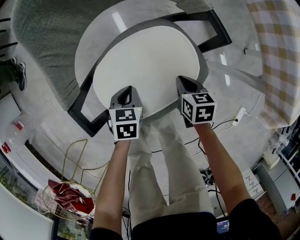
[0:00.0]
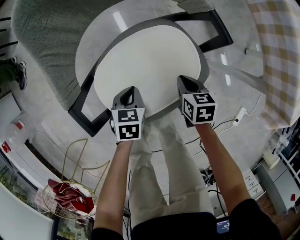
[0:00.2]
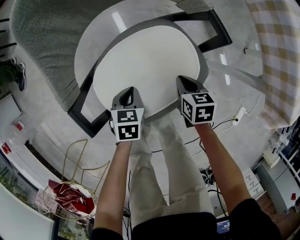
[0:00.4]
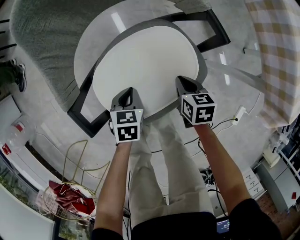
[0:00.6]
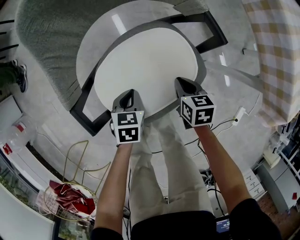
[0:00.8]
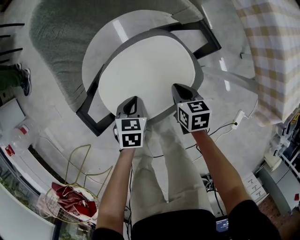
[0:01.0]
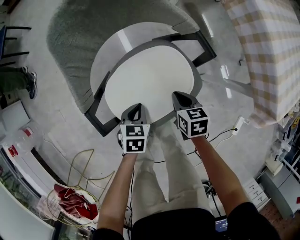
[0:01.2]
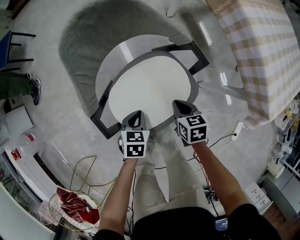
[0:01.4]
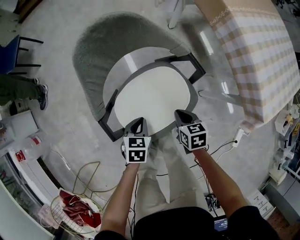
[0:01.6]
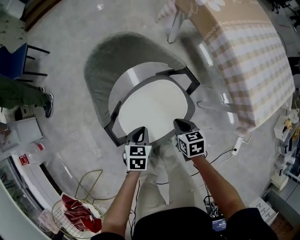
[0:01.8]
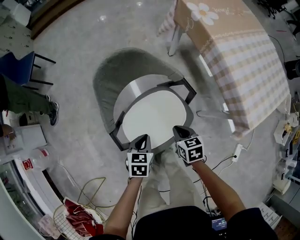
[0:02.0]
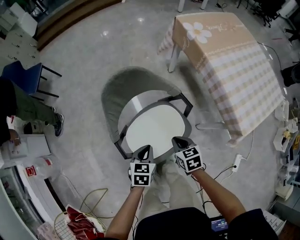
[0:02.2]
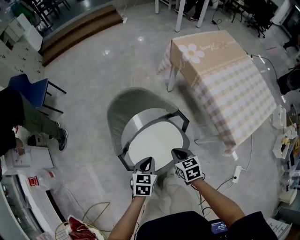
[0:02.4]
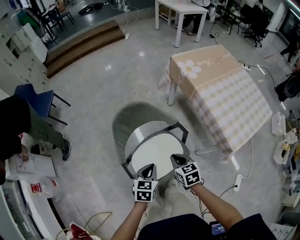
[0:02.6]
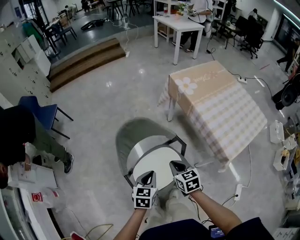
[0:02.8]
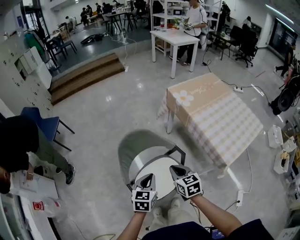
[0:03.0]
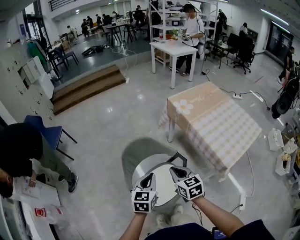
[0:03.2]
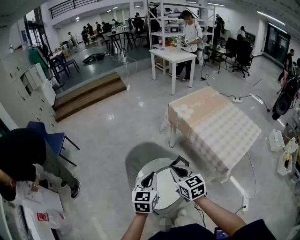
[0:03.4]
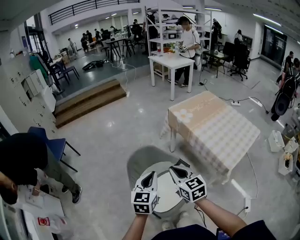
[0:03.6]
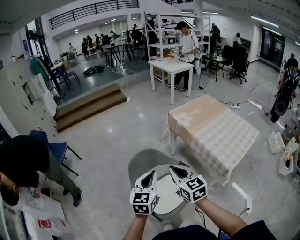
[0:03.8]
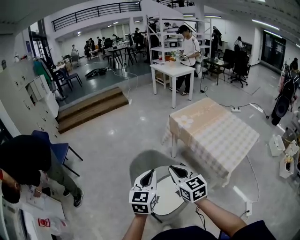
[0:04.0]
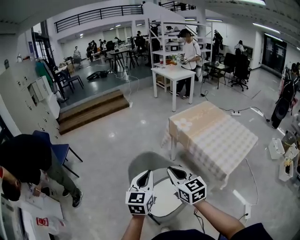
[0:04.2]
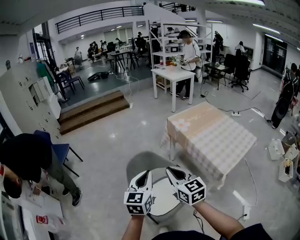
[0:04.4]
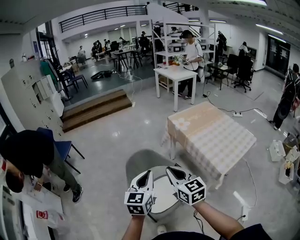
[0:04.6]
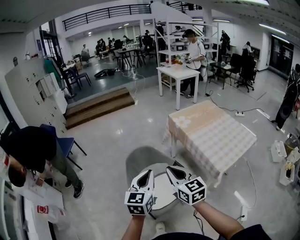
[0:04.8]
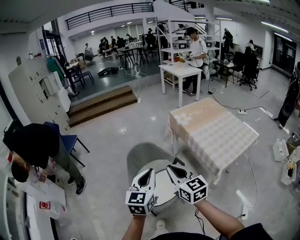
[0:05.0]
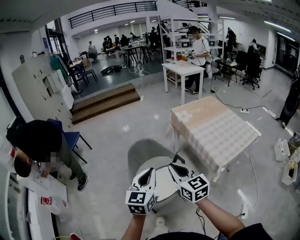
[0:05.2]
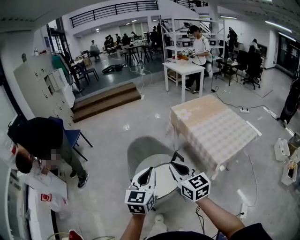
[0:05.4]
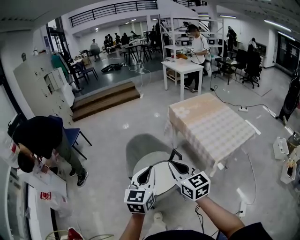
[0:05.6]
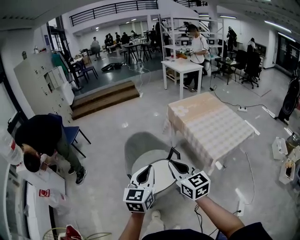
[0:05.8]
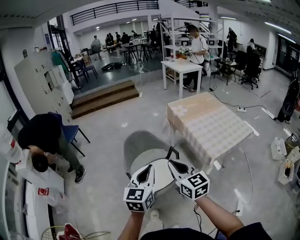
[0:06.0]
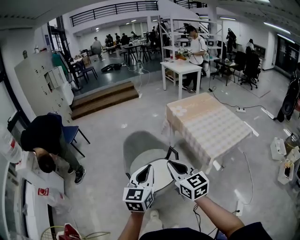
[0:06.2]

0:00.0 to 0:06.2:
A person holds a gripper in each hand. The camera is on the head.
0:00.0 to 0:01.6: Both grippers travel together upward, approximately 10 cm.
0:01.6 to 0:03.2: The two grippers go roughly 40 cm upward. The right gripper turns by about 30 degrees. The left gripper tilts its fingers approximately 30 degrees upward.
0:03.2 to 0:04.6: Both grippers move upward and backward, approximately 15 cm.
0:04.6 to 0:06.2: The two grippers go some 15 cm backward.

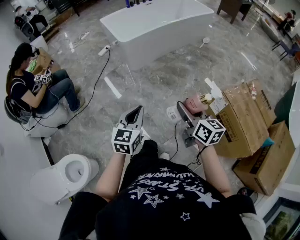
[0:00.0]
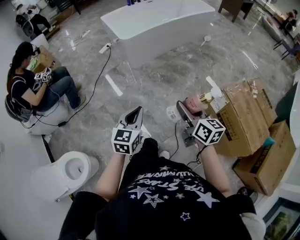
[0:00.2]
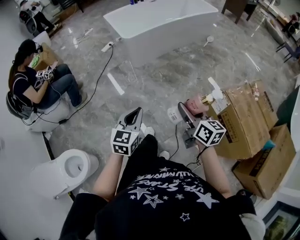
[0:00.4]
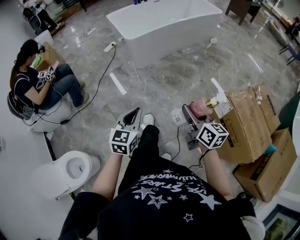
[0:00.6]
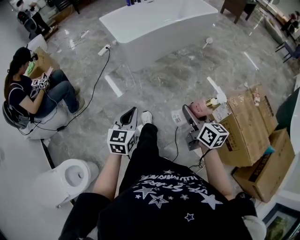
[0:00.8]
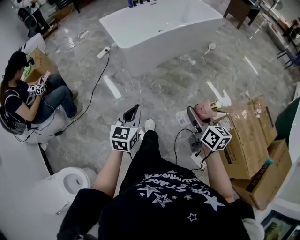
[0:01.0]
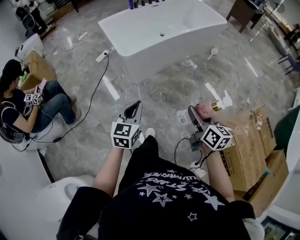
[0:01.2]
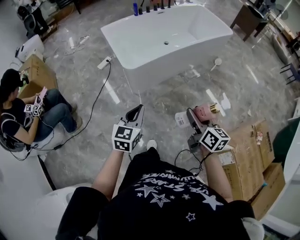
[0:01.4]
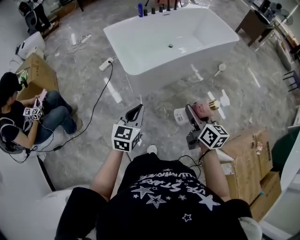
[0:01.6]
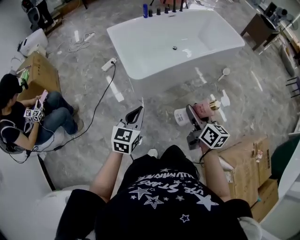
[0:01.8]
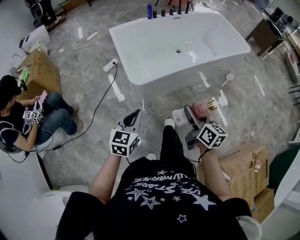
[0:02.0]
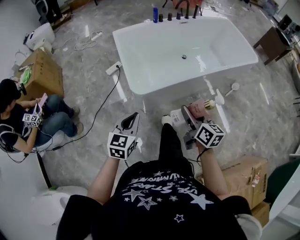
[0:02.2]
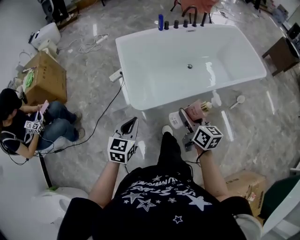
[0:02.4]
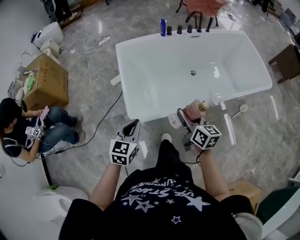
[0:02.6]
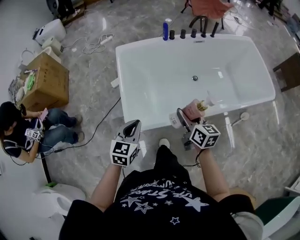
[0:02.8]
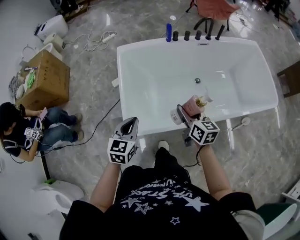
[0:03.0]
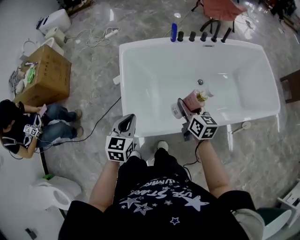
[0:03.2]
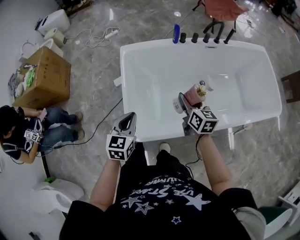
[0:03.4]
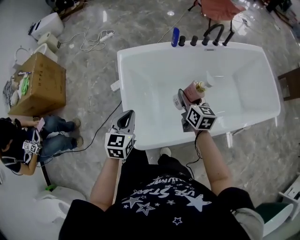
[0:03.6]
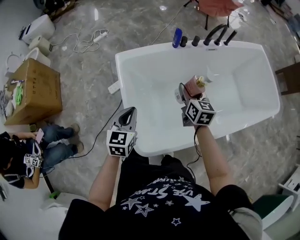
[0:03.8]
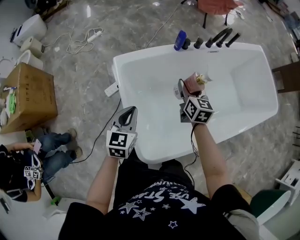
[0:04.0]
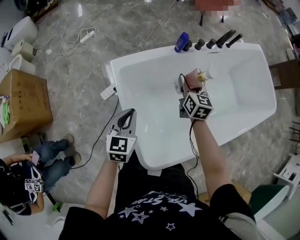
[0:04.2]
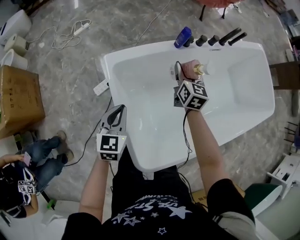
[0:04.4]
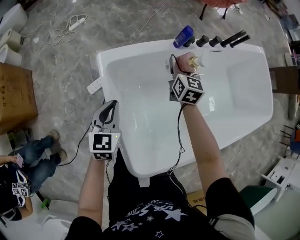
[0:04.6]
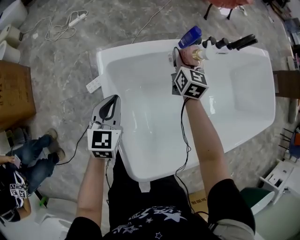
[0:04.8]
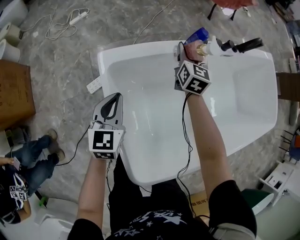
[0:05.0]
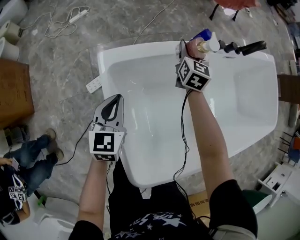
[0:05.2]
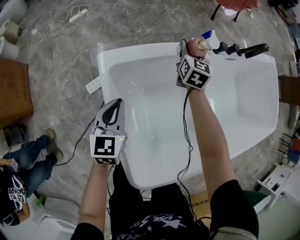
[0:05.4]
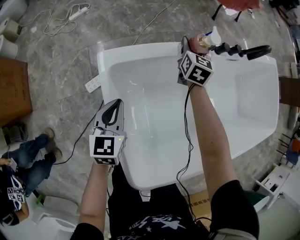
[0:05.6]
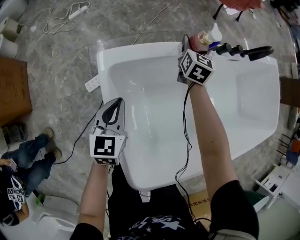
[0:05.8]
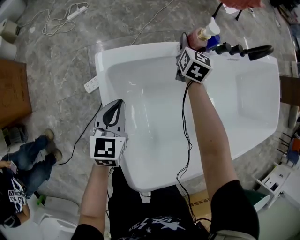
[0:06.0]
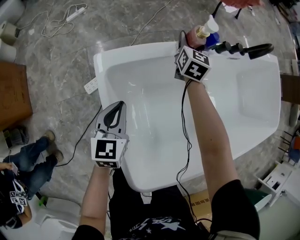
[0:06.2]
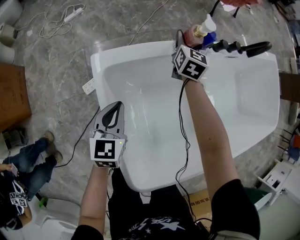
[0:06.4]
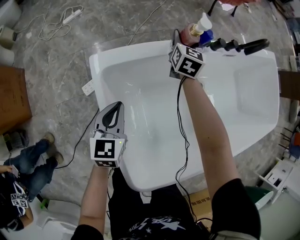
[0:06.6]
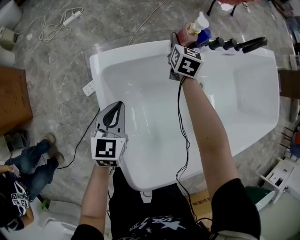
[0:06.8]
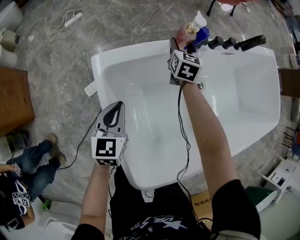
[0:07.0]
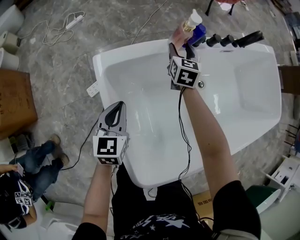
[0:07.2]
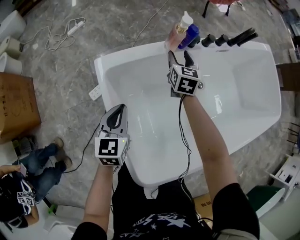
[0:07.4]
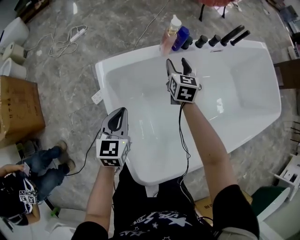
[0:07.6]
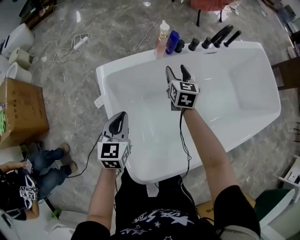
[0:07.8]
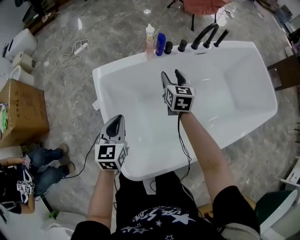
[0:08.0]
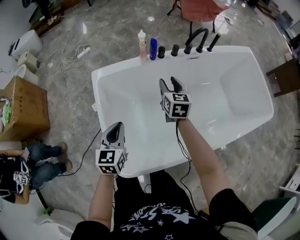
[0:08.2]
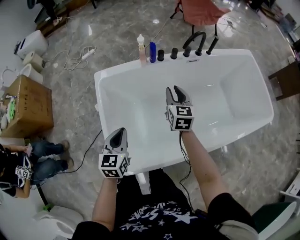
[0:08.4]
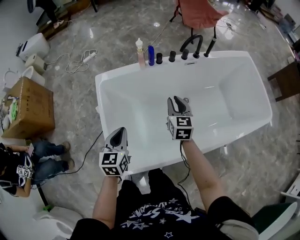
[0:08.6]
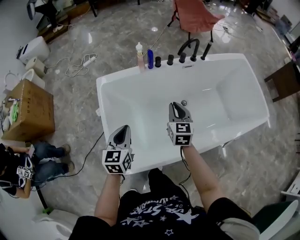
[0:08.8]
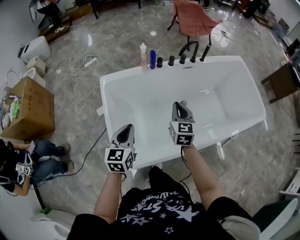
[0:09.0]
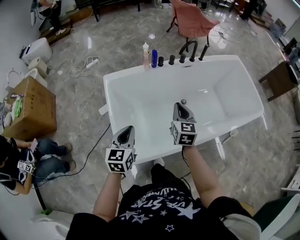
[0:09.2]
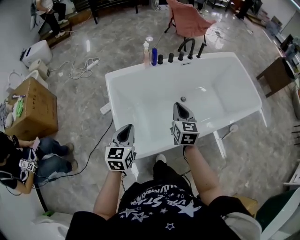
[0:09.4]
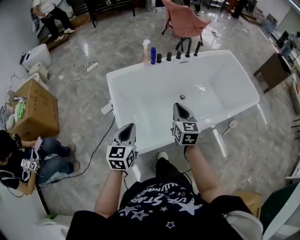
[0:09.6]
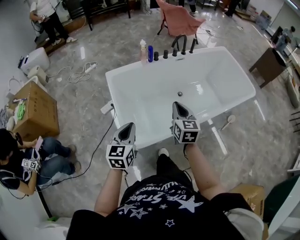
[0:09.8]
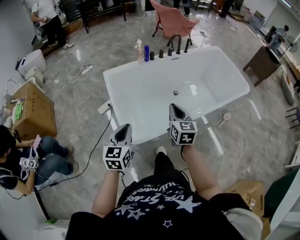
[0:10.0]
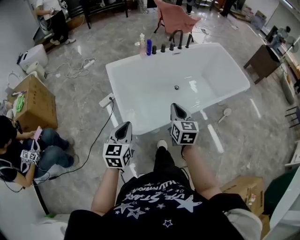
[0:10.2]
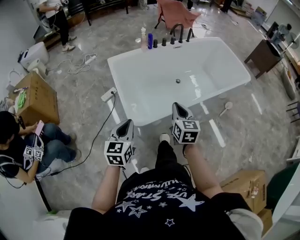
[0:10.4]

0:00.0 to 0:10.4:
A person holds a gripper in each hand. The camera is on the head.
0:00.0 to 0:01.4: Both grippers are carried forward, about 40 cm.
0:01.4 to 0:03.0: The two grippers travel together, approximately 60 cm. The left gripper changes its angle by about 30 degrees, while the right gripper turns by roughly 30 degrees.
0:03.0 to 0:04.4: The left gripper goes about 40 cm forward and to the left; the right gripper goes about 40 cm forward, and swivels some 30 degrees.
0:04.4 to 0:06.0: The left gripper moves forward and downward, roughly 15 cm. Meanwhile the right gripper moves forward and downward, some 25 cm.
0:06.0 to 0:07.4: The left gripper changes place by roughly 5 cm. The right gripper shifts roughly 10 cm backward.
0:07.4 to 0:09.0: Both grippers move backward, upward and to the right, approximately 40 cm. The right gripper closes its fingers.
0:09.0 to 0:10.4: The grippers both shift backward by roughly 35 cm.

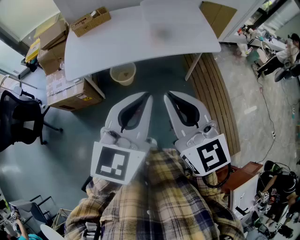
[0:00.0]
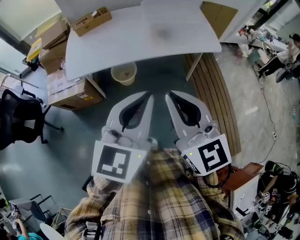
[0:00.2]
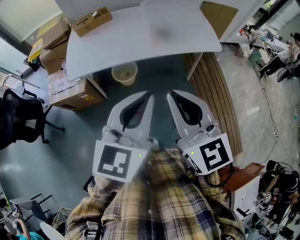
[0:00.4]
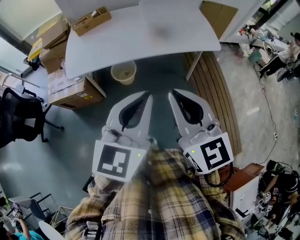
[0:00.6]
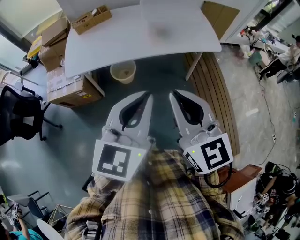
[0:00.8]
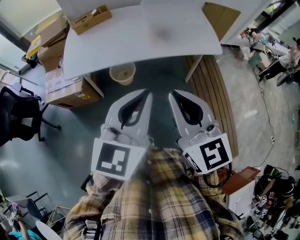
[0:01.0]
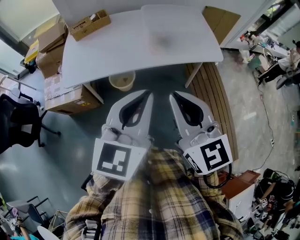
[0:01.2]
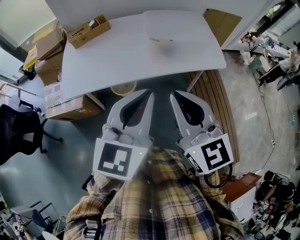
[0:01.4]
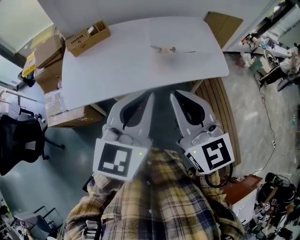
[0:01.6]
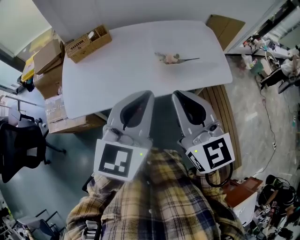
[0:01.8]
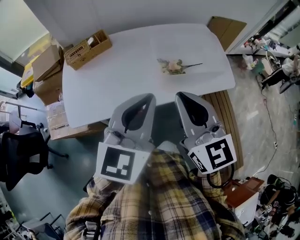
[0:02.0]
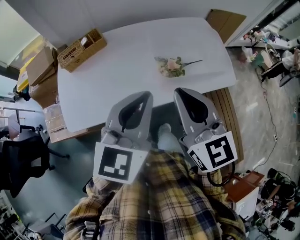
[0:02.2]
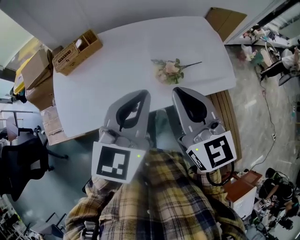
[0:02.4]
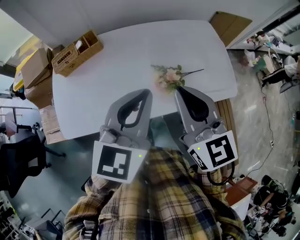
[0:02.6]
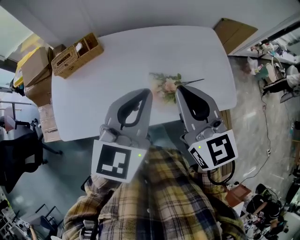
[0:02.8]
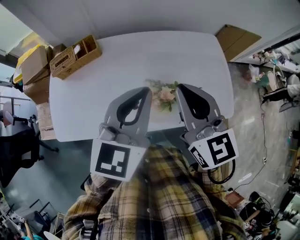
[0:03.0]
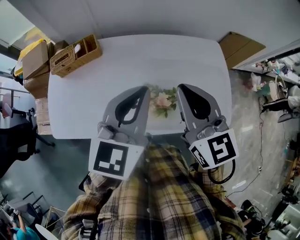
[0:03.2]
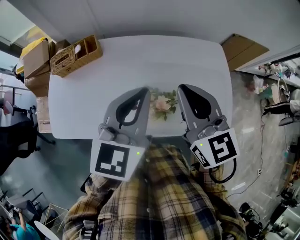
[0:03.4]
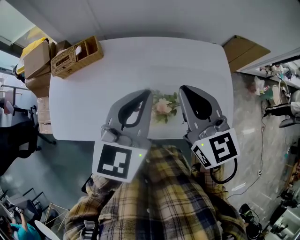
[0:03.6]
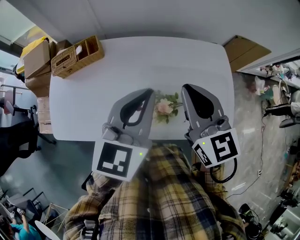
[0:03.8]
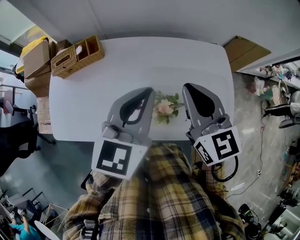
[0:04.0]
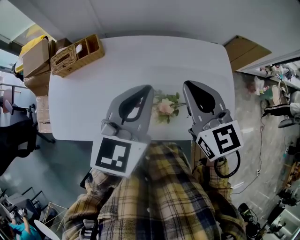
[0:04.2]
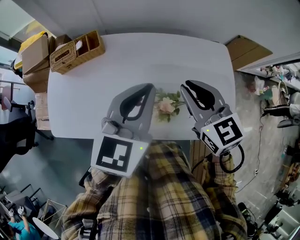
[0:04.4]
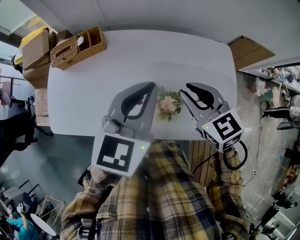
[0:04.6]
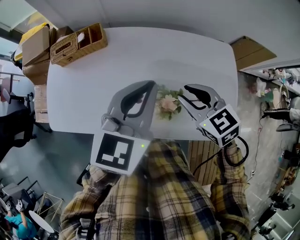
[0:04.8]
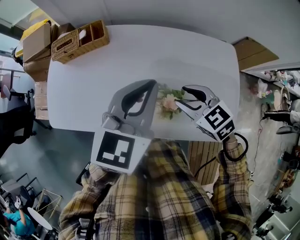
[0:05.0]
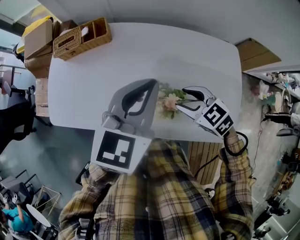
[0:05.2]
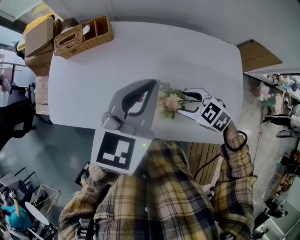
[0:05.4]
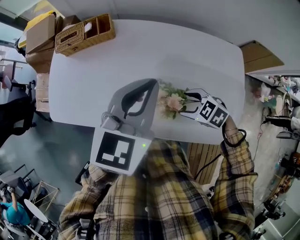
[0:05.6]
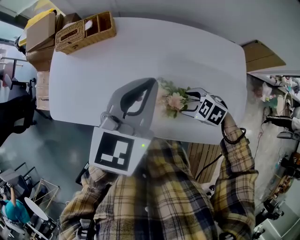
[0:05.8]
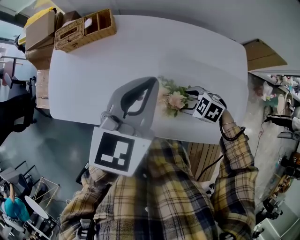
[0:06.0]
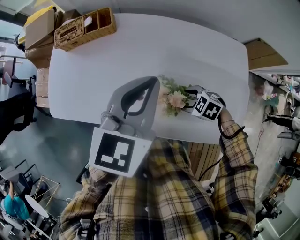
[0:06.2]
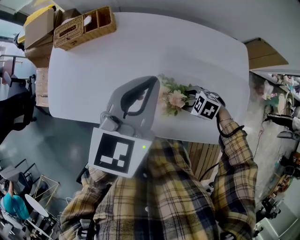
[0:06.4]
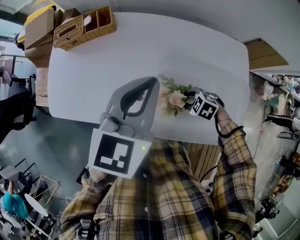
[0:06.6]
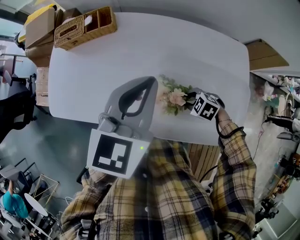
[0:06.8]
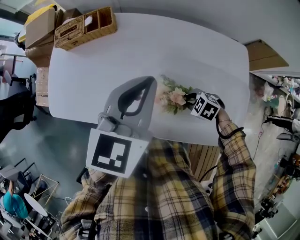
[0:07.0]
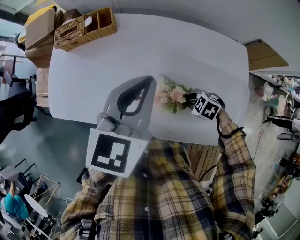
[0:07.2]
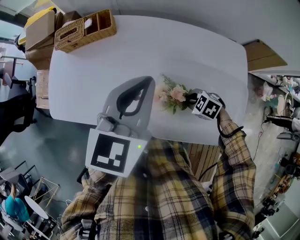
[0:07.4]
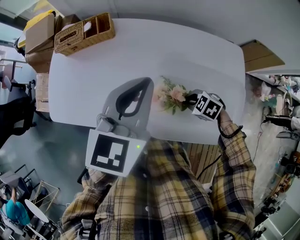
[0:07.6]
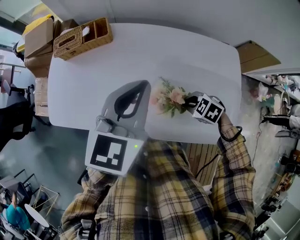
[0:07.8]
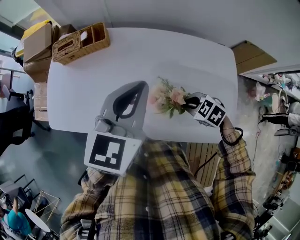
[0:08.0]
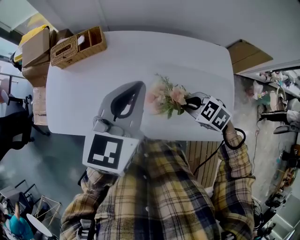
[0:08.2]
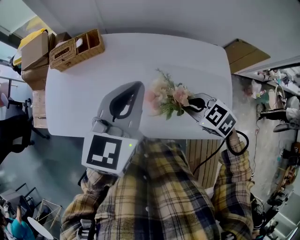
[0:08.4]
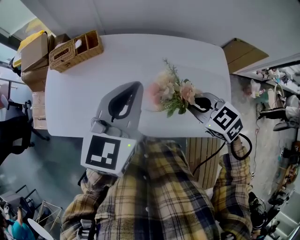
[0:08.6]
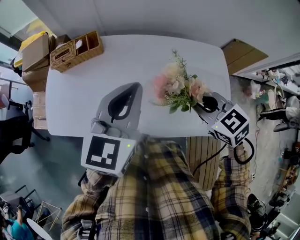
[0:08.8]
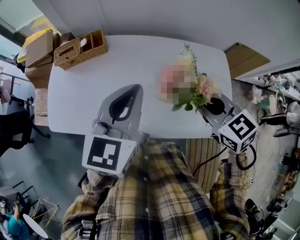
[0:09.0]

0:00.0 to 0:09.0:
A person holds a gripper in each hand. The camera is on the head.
0:00.0 to 0:01.6: Both grippers travel together forward, about 20 cm.
0:01.6 to 0:03.0: Both grippers travel together forward, approximately 35 cm.
0:03.0 to 0:04.4: The right gripper shifts about 10 cm forward and downward, while the left gripper travels forward by some 10 cm.
0:04.4 to 0:06.0: The right gripper heads downward, covering roughly 25 cm, points its fingers about 40 degrees further downward, and opens up. Meanwhile the left gripper changes place by some 5 cm.
0:06.0 to 0:07.6: The right gripper closes its fingers.
0:07.6 to 0:09.0: The left gripper shifts by about 5 cm. The right gripper is displaced upward by some 25 cm, and swivels about 40 degrees.
